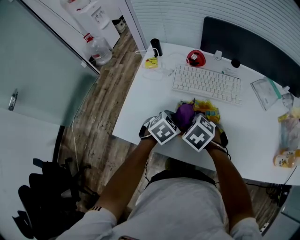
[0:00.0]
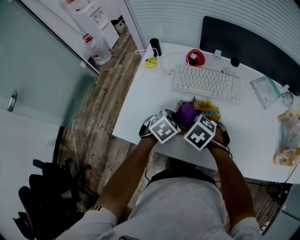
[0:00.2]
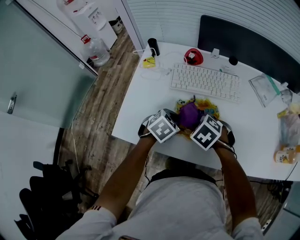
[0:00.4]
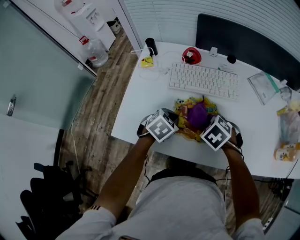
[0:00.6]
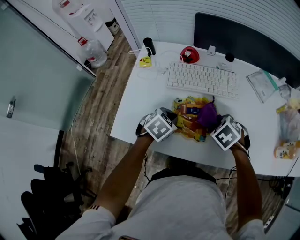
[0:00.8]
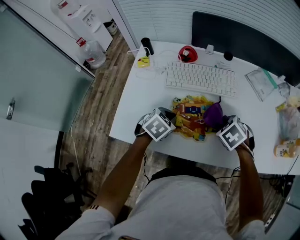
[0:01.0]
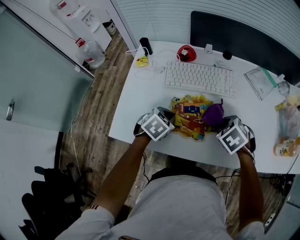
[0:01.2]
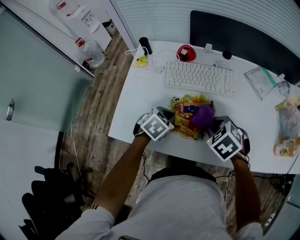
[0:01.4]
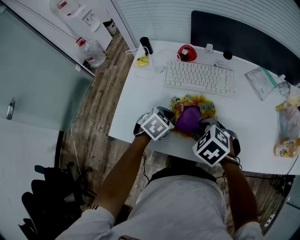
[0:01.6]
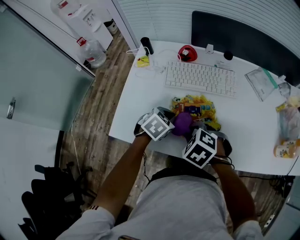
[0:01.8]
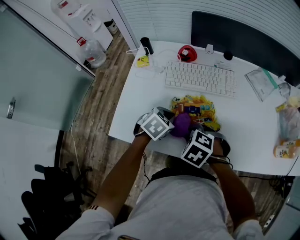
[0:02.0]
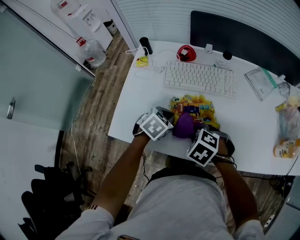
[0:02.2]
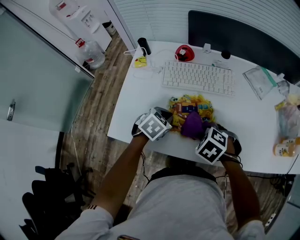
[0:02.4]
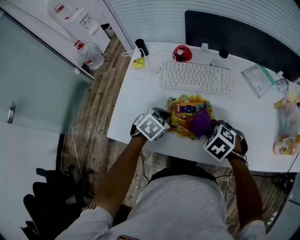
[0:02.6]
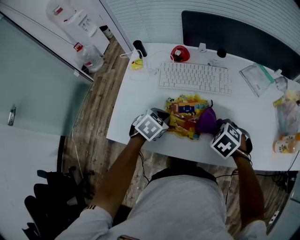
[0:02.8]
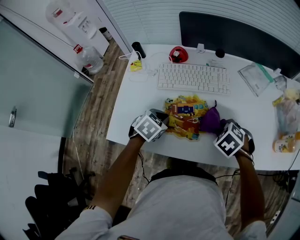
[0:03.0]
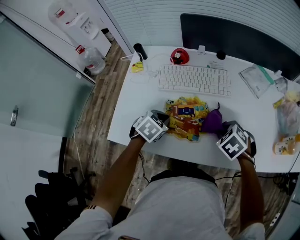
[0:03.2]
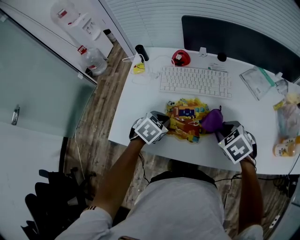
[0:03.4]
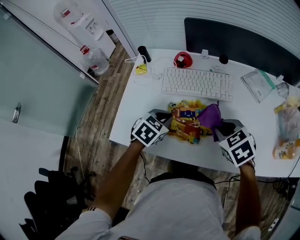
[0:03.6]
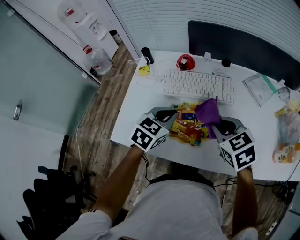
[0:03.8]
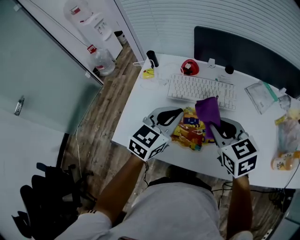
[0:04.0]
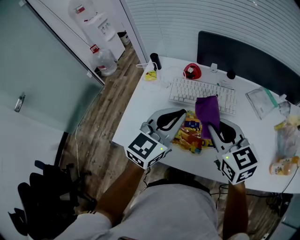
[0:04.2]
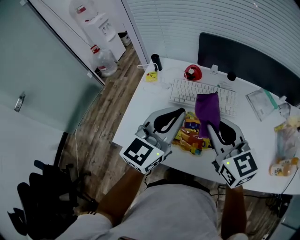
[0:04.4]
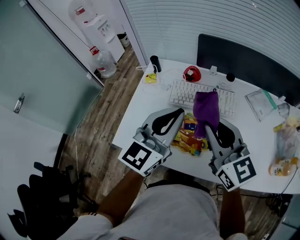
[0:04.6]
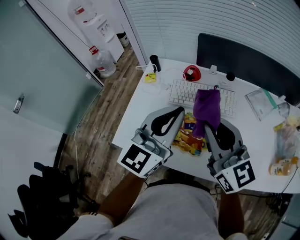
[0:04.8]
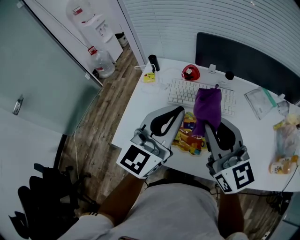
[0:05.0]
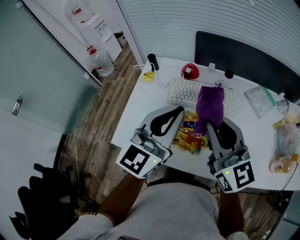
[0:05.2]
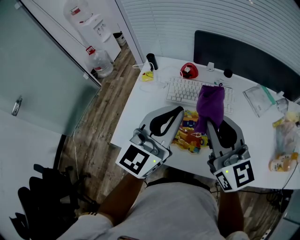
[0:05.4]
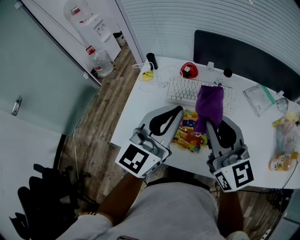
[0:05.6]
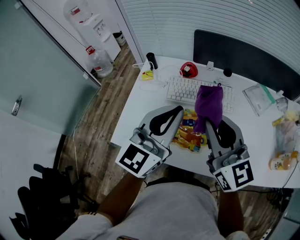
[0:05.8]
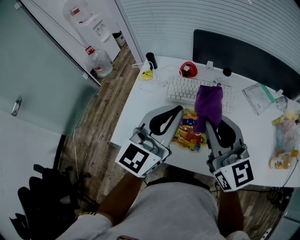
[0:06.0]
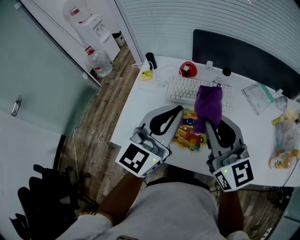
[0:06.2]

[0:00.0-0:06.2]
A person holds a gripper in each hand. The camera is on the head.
0:00.0 to 0:01.6: The right gripper heads to the right, covering approximately 5 cm.
0:01.6 to 0:03.2: The right gripper travels to the right by about 15 cm.
0:03.2 to 0:04.6: The left gripper travels upward by roughly 30 cm, and angles its fingers upward, by some 60 degrees. Meanwhile the right gripper goes about 25 cm upward and to the left, and points its fingers roughly 70 degrees further upward.
0:04.6 to 0:06.2: There are only small adjustments of the grippers.

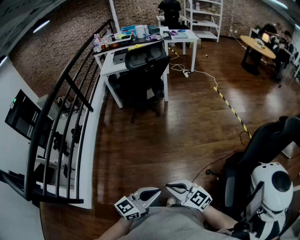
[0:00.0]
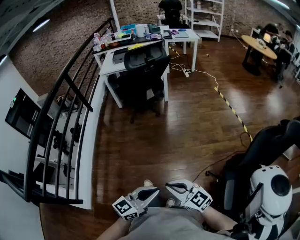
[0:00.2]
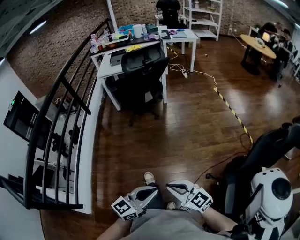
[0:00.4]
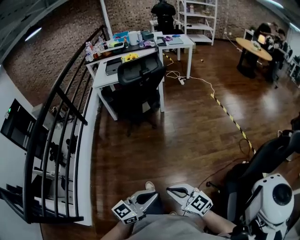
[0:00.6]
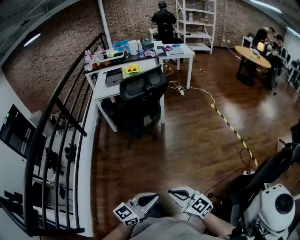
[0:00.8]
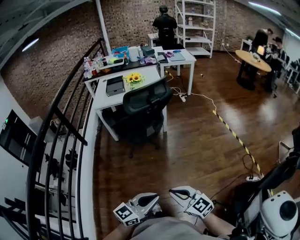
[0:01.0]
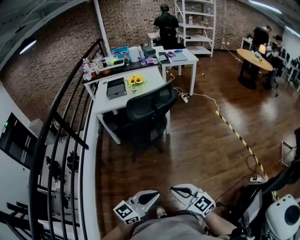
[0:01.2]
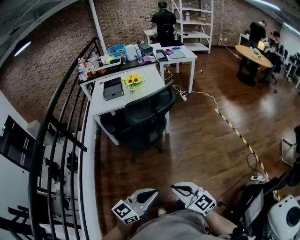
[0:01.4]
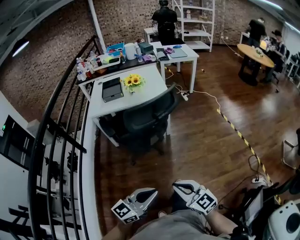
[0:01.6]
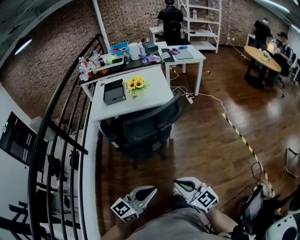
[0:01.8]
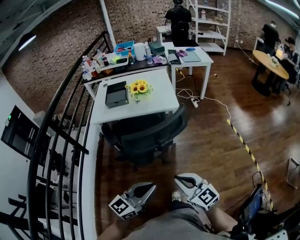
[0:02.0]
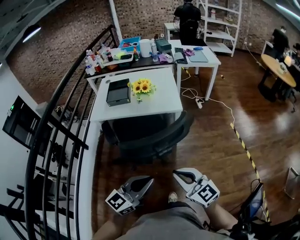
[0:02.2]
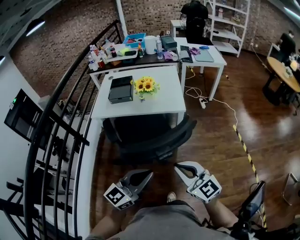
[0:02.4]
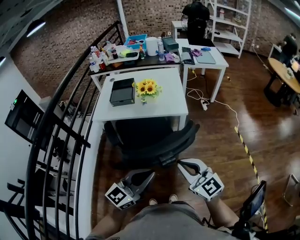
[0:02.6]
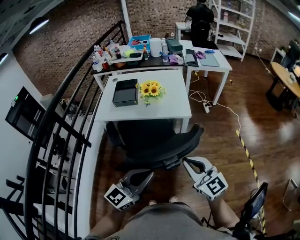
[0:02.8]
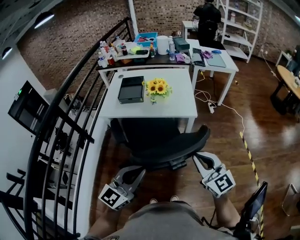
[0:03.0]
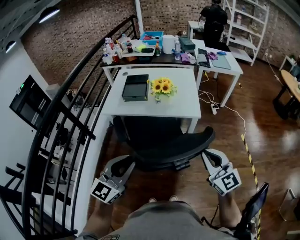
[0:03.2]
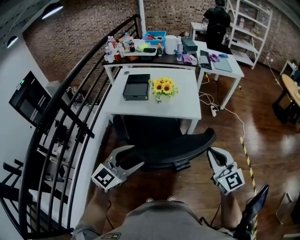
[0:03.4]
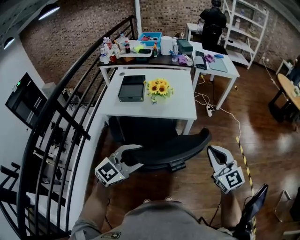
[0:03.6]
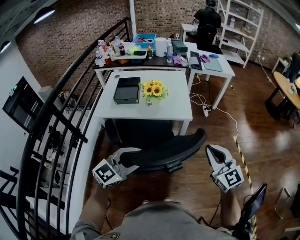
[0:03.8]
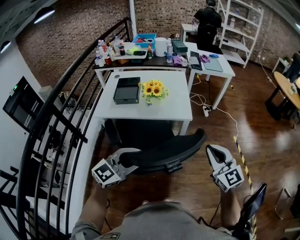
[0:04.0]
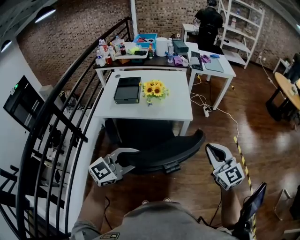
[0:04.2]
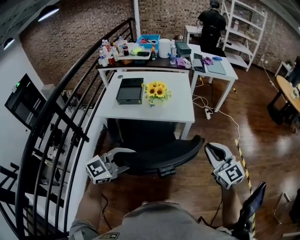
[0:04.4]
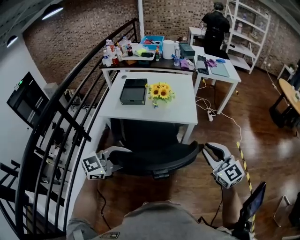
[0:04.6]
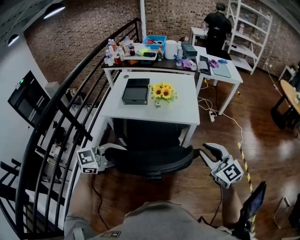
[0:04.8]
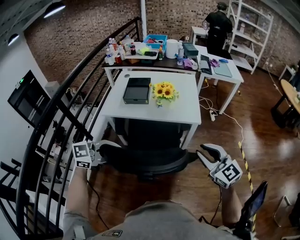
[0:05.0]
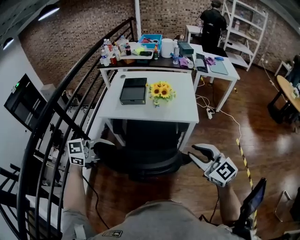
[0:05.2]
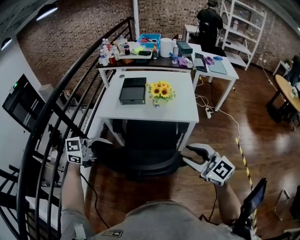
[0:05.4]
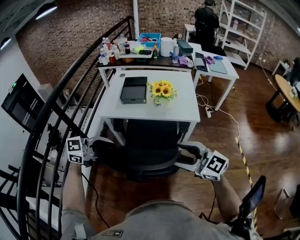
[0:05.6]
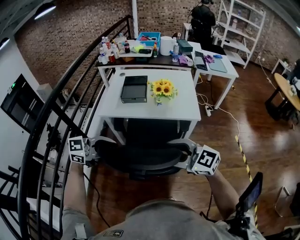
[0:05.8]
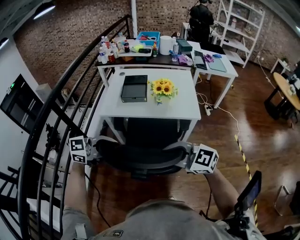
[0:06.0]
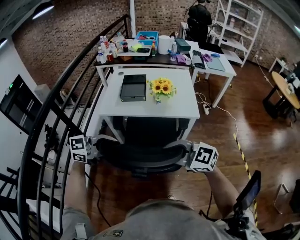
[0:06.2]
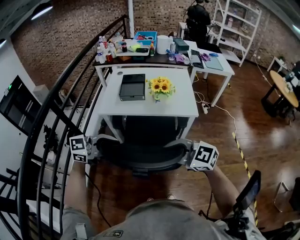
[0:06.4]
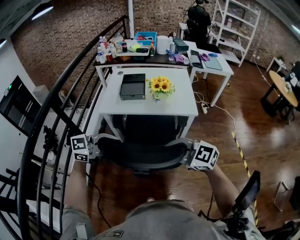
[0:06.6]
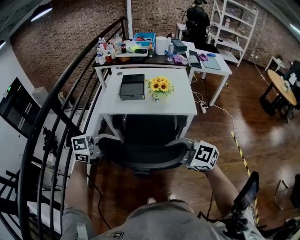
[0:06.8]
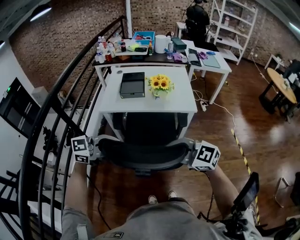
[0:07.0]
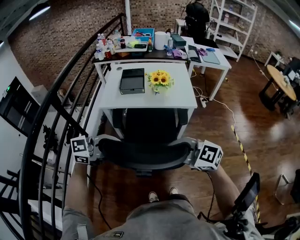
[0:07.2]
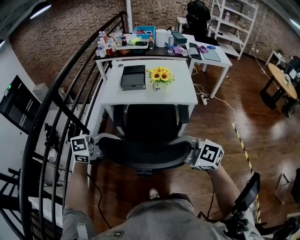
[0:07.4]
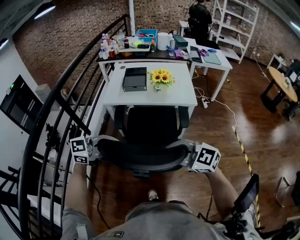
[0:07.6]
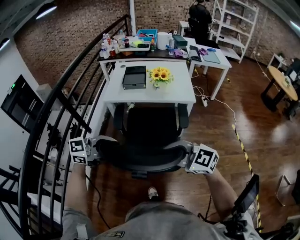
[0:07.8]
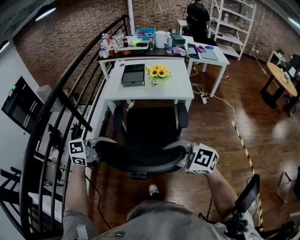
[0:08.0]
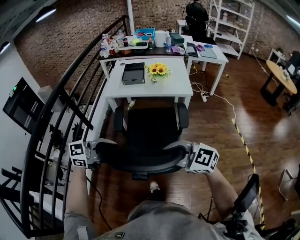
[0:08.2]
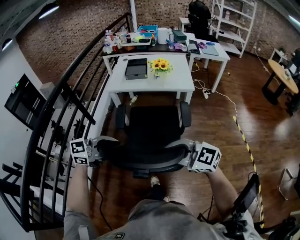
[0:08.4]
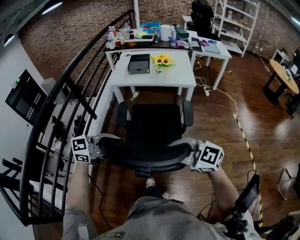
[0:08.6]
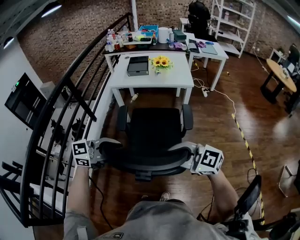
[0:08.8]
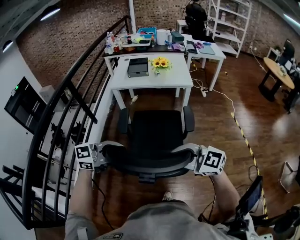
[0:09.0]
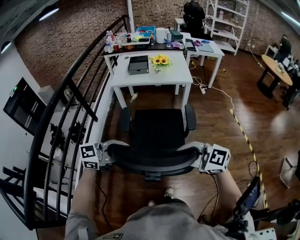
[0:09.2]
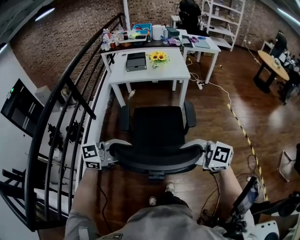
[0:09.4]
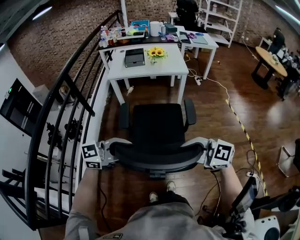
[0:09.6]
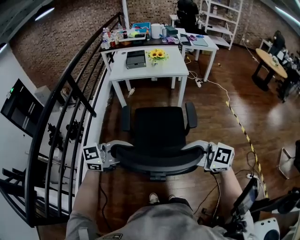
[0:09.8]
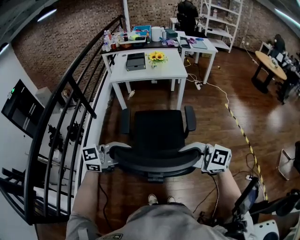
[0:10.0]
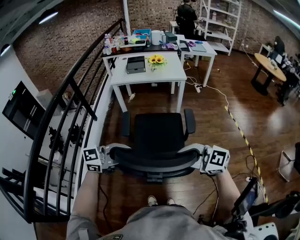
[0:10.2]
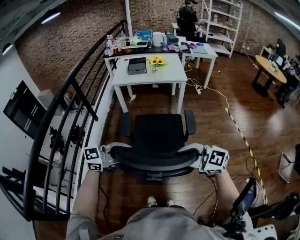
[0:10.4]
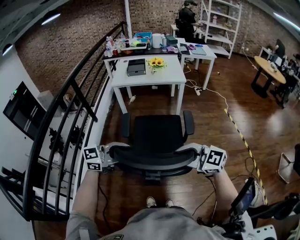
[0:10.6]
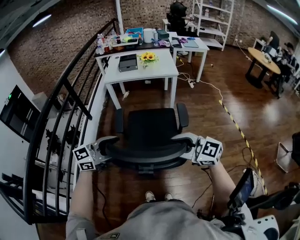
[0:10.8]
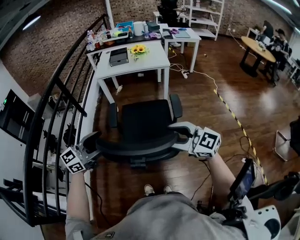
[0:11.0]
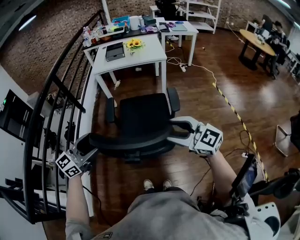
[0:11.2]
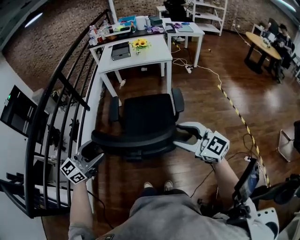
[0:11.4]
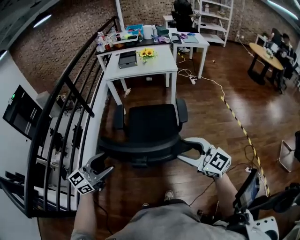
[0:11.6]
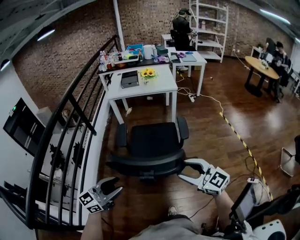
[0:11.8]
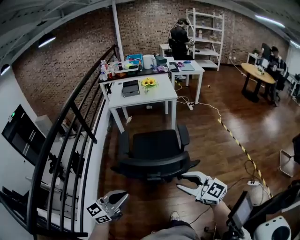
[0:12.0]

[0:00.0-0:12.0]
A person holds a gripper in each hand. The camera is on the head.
0:00.0 to 0:01.6: The two grippers travel together, forward, roughly 50 cm.
0:01.6 to 0:03.0: The two grippers go some 30 cm forward. The left gripper rotates roughly 30 degrees.
0:03.0 to 0:04.4: The right gripper shifts roughly 10 cm forward and to the right. Meanwhile the left gripper shifts about 5 cm forward, changes its angle by some 20 degrees, and opens and closes again.
0:04.4 to 0:06.0: The left gripper changes place by approximately 15 cm. Meanwhile the right gripper changes place by some 25 cm, turns by some 40 degrees, and opens, then closes once more.
0:06.0 to 0:07.6: The right gripper ends up roughly 10 cm from where it was; the left gripper changes place by approximately 10 cm.
0:07.6 to 0:09.0: The right gripper shifts by some 25 cm, while the left gripper changes place by about 25 cm.
0:09.0 to 0:10.4: The left gripper ends up some 10 cm from where it was; the right gripper changes place by approximately 10 cm.
0:10.4 to 0:12.0: The left gripper ends up roughly 15 cm from where it was, changes its angle by approximately 20 degrees, and closes its fingers; the right gripper changes place by roughly 10 cm, and changes its angle by about 20 degrees.

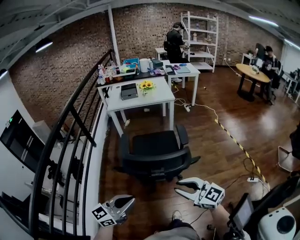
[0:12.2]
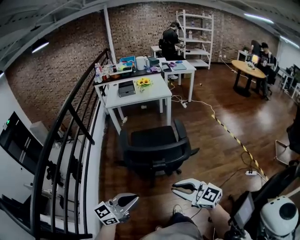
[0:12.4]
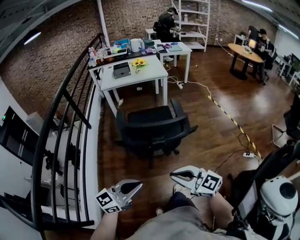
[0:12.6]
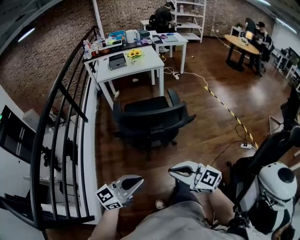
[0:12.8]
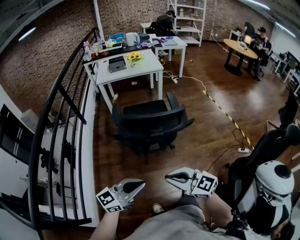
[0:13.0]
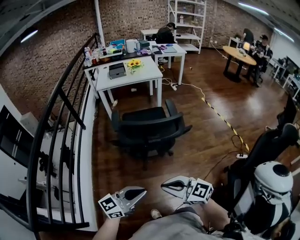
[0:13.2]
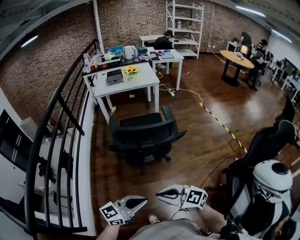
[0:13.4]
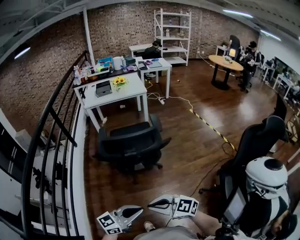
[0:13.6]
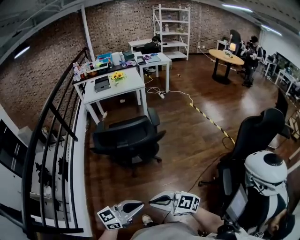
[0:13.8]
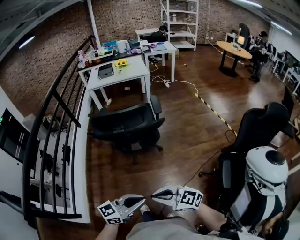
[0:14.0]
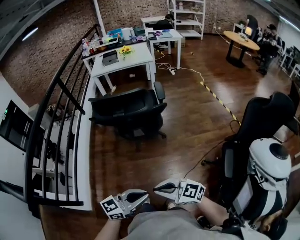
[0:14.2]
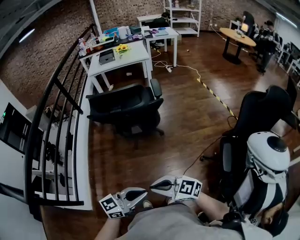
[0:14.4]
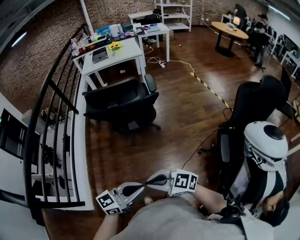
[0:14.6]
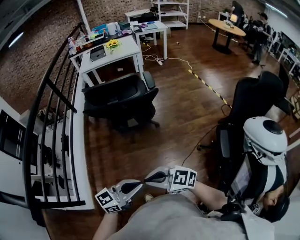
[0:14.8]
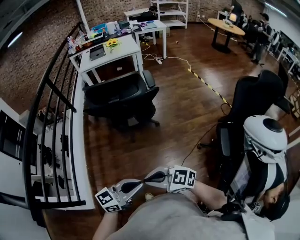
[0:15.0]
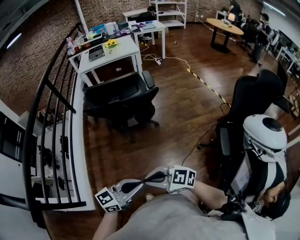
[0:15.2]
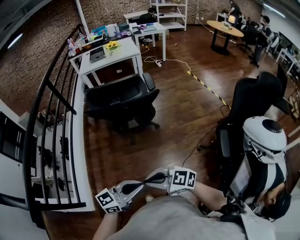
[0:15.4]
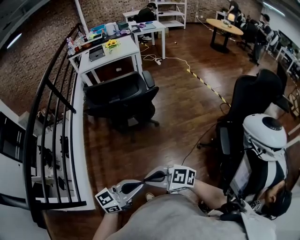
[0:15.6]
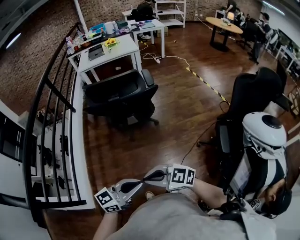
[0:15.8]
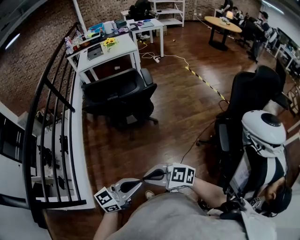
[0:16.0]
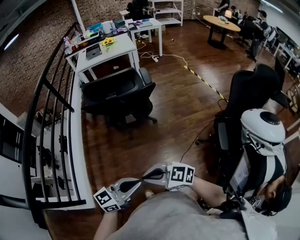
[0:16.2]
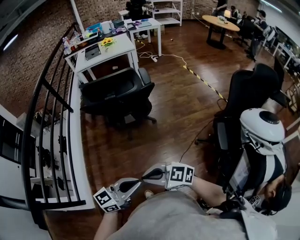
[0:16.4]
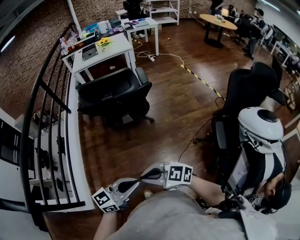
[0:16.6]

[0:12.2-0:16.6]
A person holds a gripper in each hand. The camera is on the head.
0:12.2 to 0:13.6: The left gripper ends up roughly 20 cm from where it was; the right gripper ends up roughly 20 cm from where it was, and closes up.
0:13.6 to 0:15.2: The right gripper shifts by roughly 15 cm; the left gripper shifts by approximately 15 cm.
0:15.2 to 0:16.6: The grippers make only small movements.

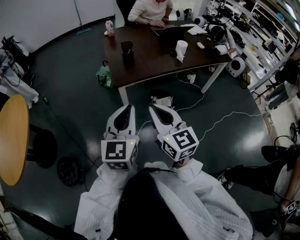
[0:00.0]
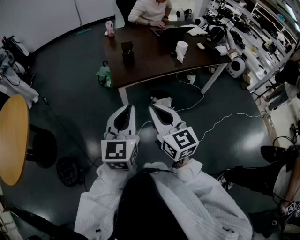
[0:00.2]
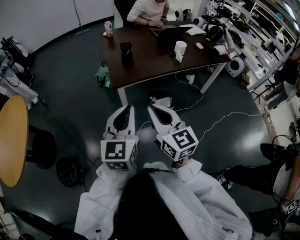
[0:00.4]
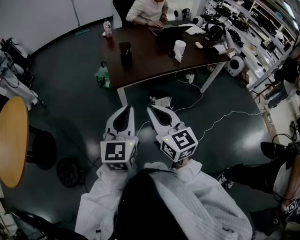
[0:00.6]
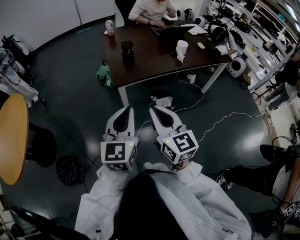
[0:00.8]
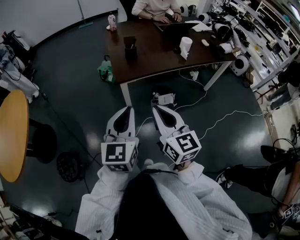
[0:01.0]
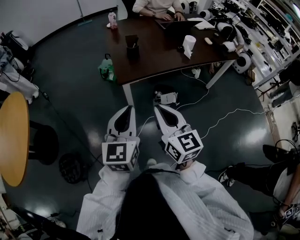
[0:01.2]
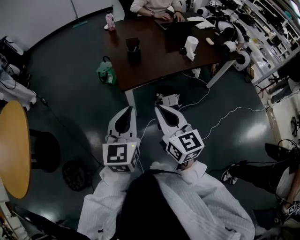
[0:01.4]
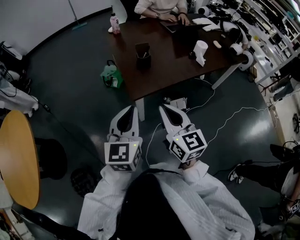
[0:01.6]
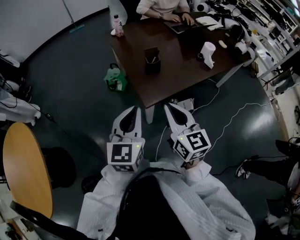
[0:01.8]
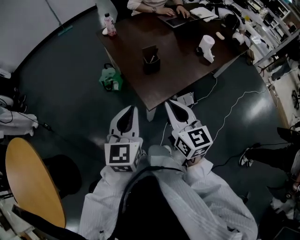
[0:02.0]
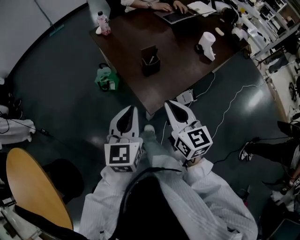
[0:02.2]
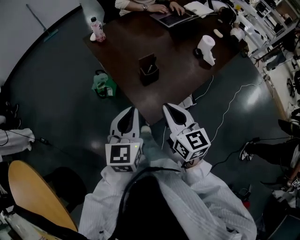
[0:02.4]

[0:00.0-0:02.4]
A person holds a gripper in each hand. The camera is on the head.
0:00.0 to 0:01.2: The left gripper moves approximately 5 cm.
0:01.2 to 0:02.4: Both grippers travel together forward and to the left, roughly 40 cm. The left gripper changes its angle by approximately 20 degrees, while the right gripper rotates about 20 degrees.
